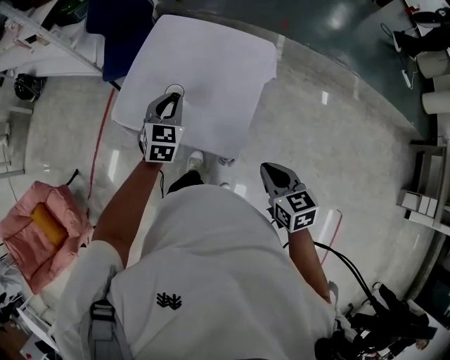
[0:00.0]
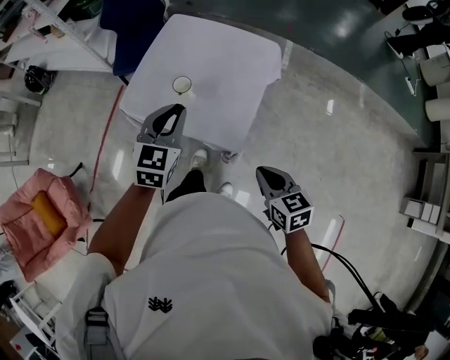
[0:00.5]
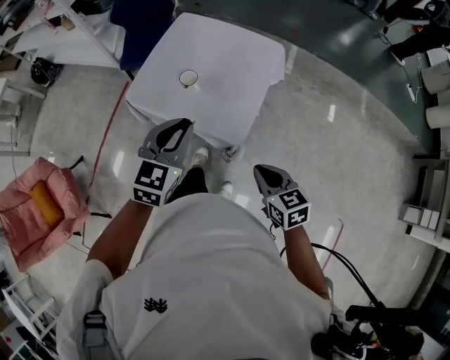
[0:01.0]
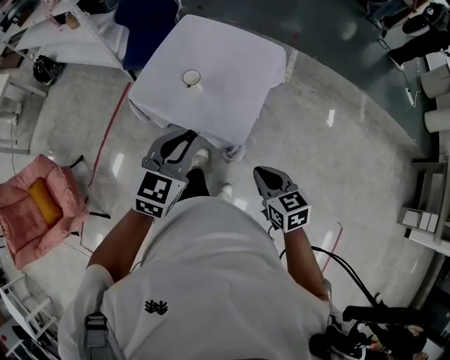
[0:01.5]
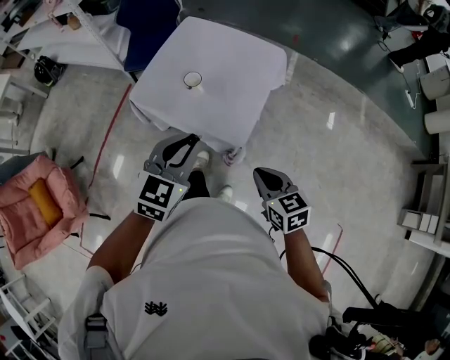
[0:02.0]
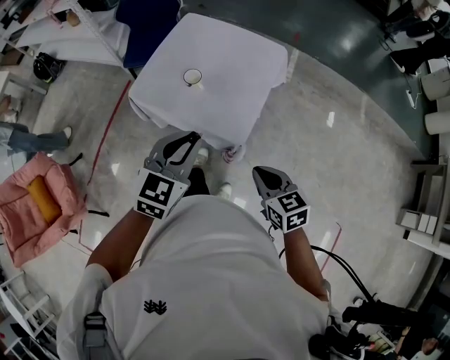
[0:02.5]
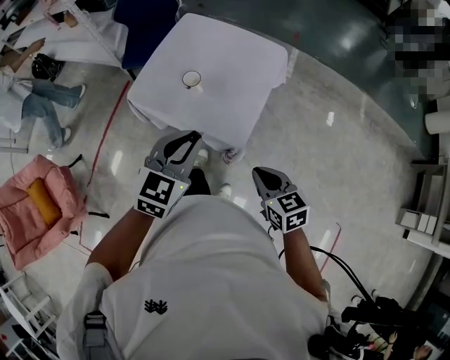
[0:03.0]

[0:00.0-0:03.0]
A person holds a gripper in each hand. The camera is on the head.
0:00.0 to 0:01.5: The left gripper moves backward and upward, approximately 25 cm. The right gripper is displaced backward and to the left by roughly 10 cm.
0:01.5 to 0:03.0: There are only small adjustments of the grippers.

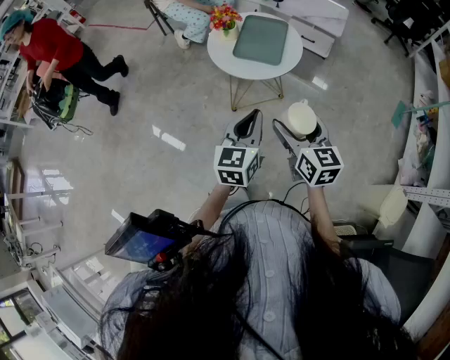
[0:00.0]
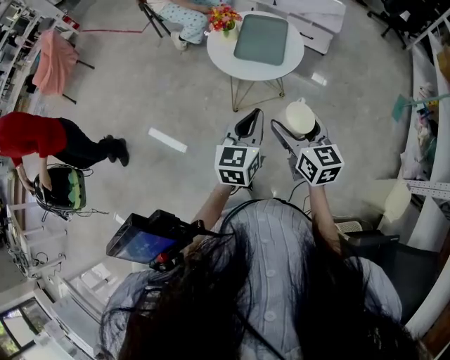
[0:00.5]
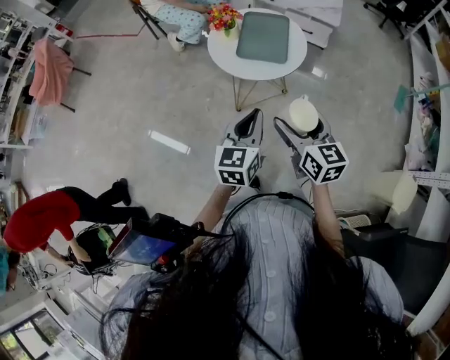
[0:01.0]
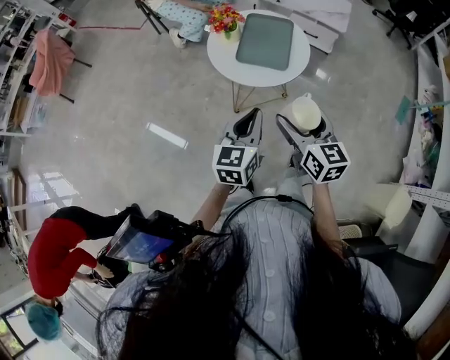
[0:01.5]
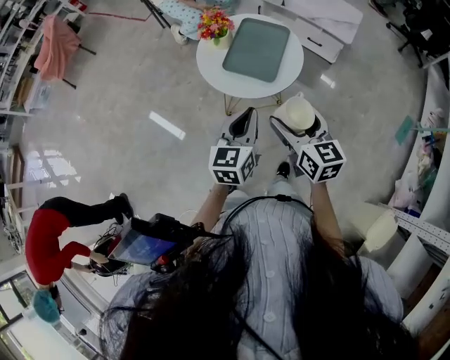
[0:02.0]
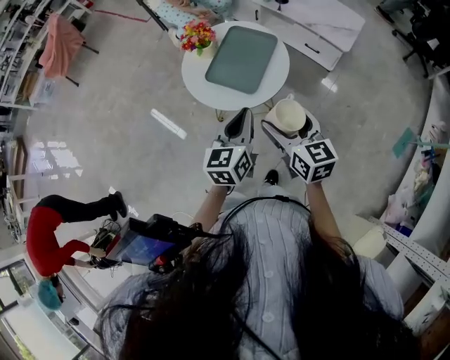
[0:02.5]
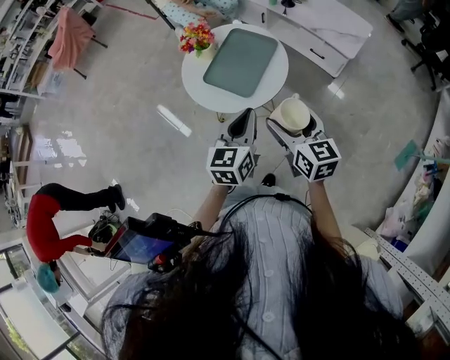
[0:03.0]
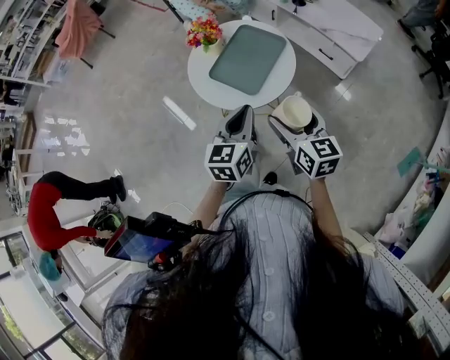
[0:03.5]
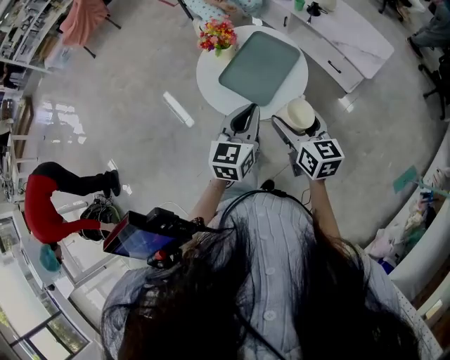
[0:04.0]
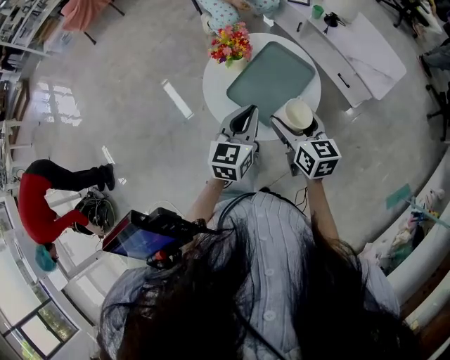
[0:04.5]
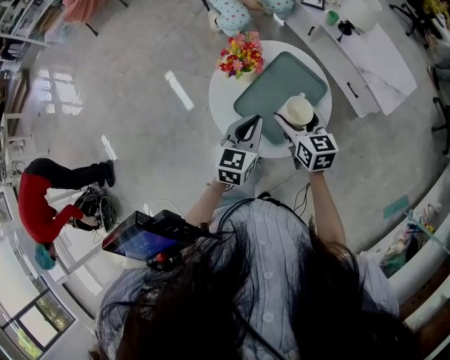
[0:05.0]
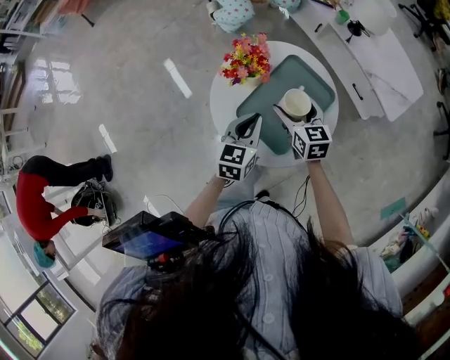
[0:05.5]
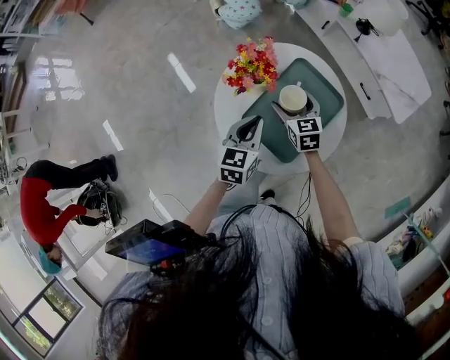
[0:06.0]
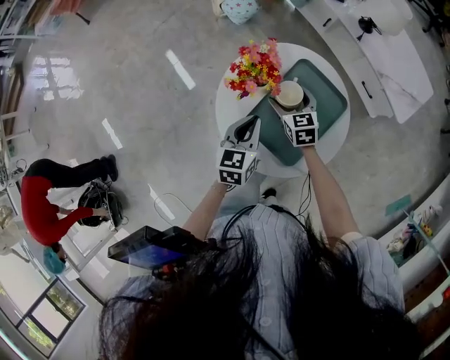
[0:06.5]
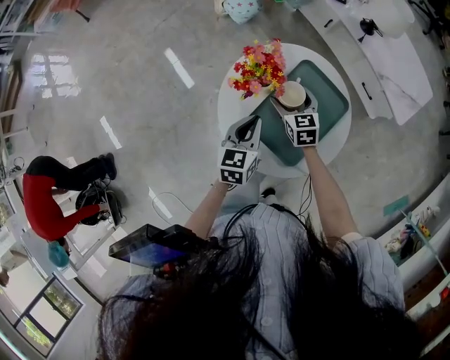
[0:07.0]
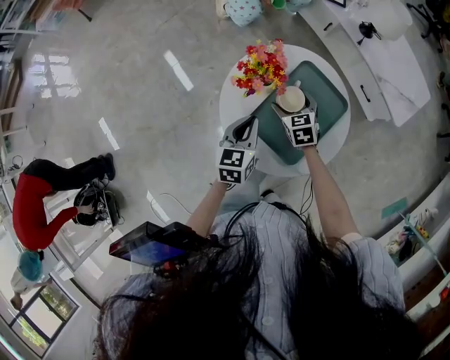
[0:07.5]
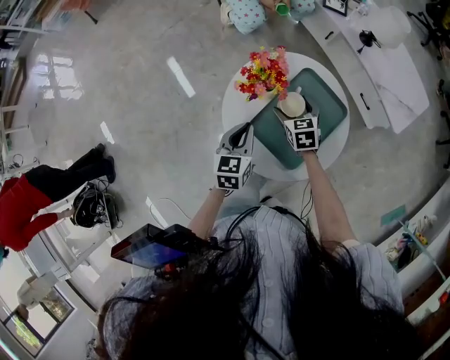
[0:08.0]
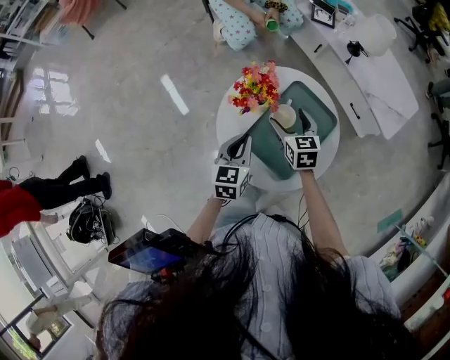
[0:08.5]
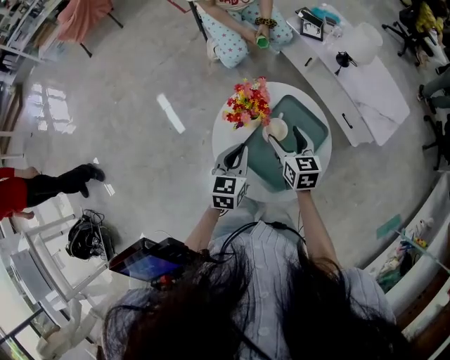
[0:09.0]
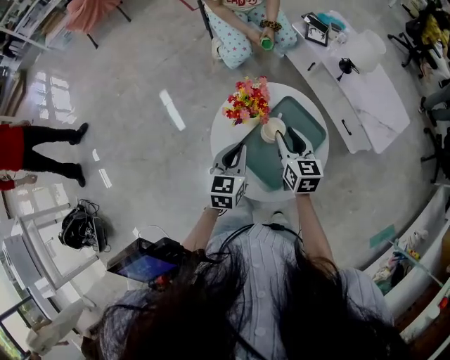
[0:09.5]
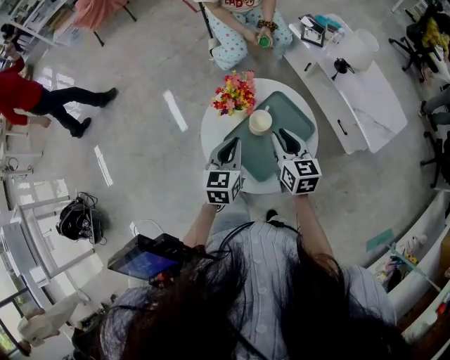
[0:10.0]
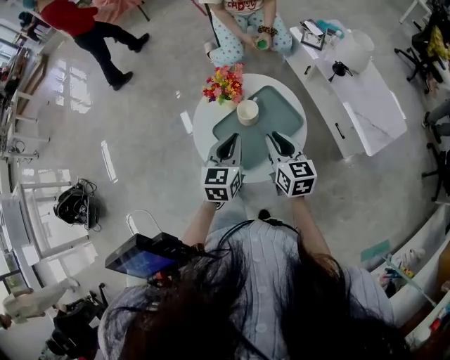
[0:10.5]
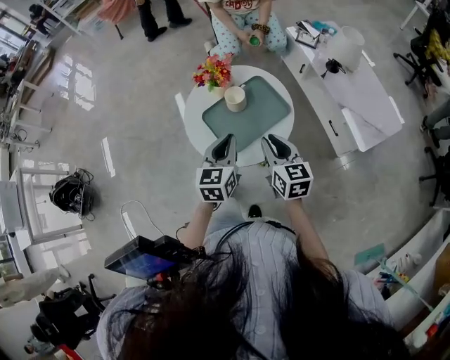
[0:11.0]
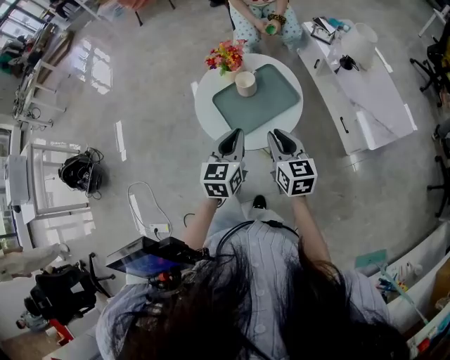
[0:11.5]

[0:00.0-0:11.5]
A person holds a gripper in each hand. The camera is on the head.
0:00.0 to 0:02.0: Both grippers travel together forward, some 15 cm.
0:02.0 to 0:04.0: Both grippers travel together forward and to the right, approximately 15 cm.
0:04.0 to 0:06.0: The grippers both shift forward and downward by some 30 cm. The right gripper rotates approximately 30 degrees.
0:06.0 to 0:07.5: The grippers stay close to where they were, moving slightly.
0:07.5 to 0:09.5: The right gripper travels upward by roughly 15 cm, rotates some 20 degrees, and closes.
0:09.5 to 0:11.5: Both grippers travel together backward and to the right, about 25 cm. The right gripper turns by roughly 20 degrees.

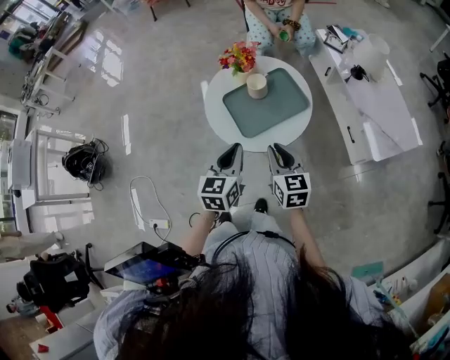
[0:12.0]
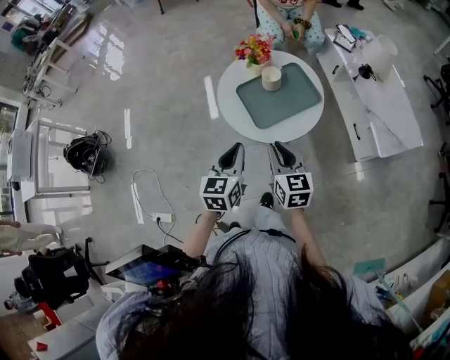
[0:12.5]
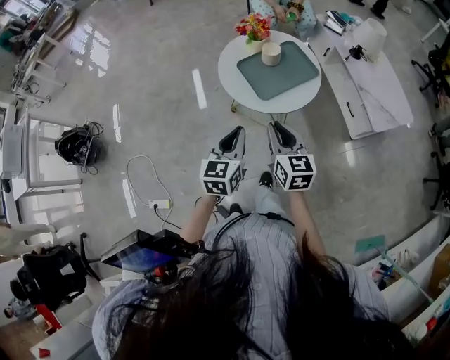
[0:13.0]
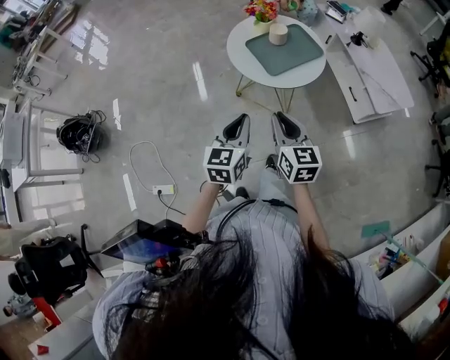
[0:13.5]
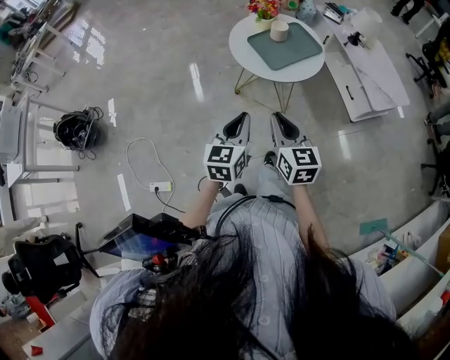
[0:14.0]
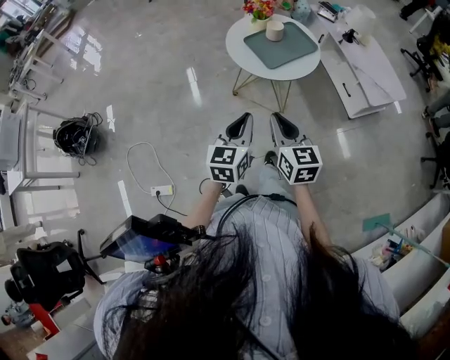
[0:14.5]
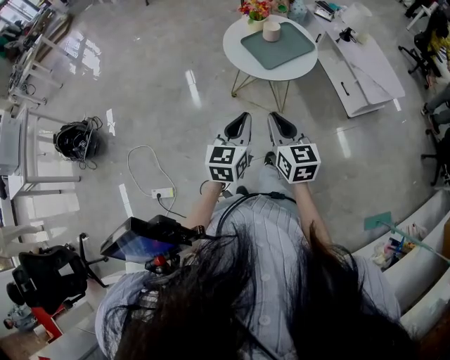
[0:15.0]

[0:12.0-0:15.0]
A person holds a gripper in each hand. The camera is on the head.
0:12.0 to 0:13.5: Both grippers move backward and to the left, some 25 cm.
0:13.5 to 0:15.0: The grippers move only a little.

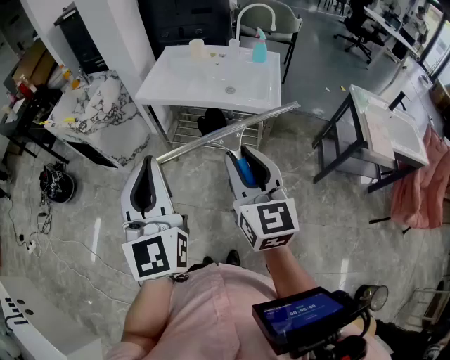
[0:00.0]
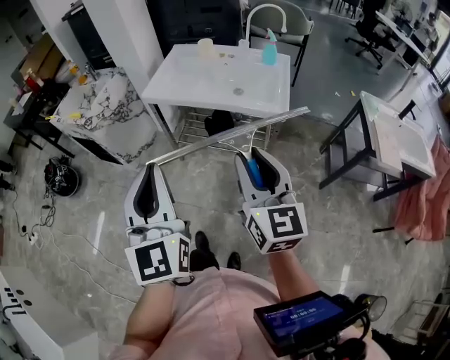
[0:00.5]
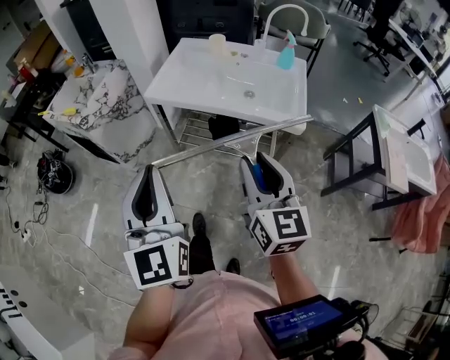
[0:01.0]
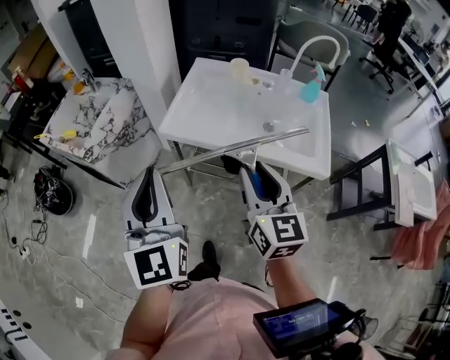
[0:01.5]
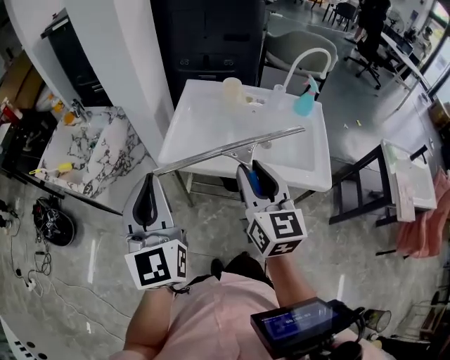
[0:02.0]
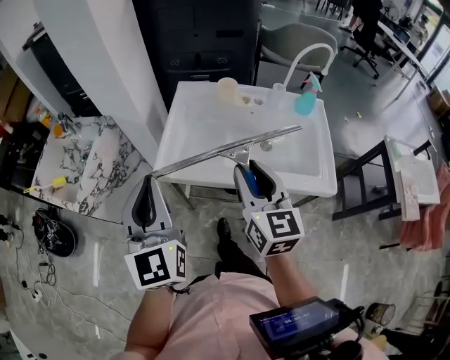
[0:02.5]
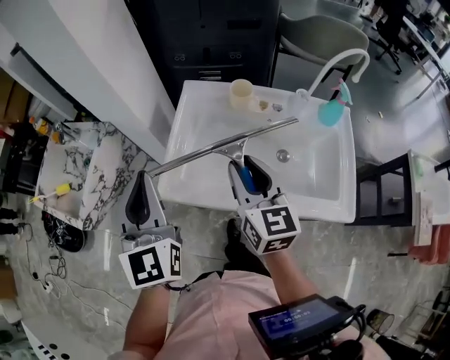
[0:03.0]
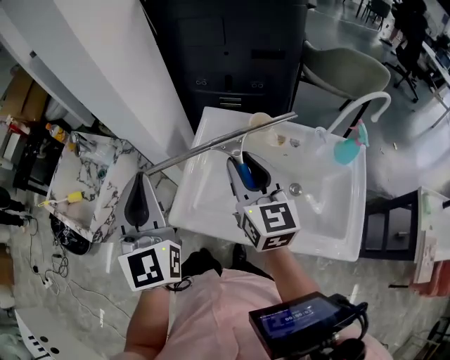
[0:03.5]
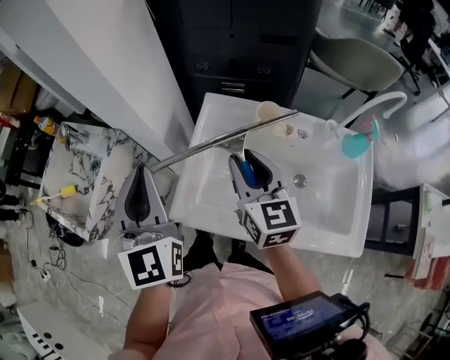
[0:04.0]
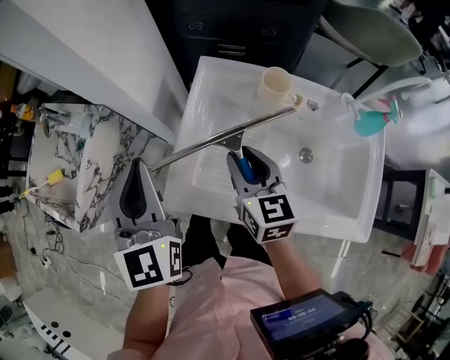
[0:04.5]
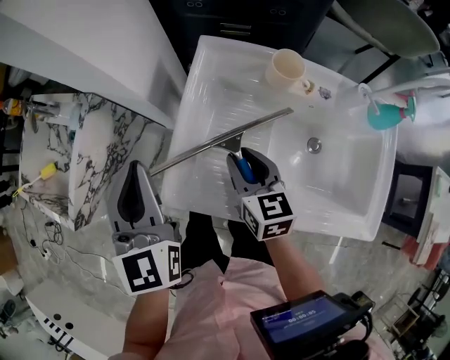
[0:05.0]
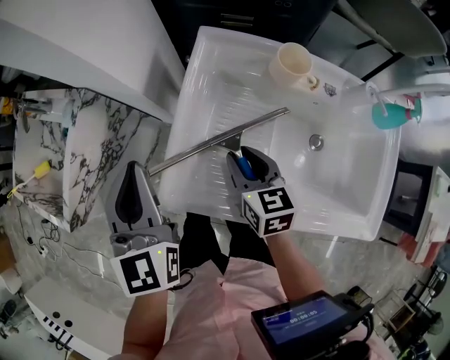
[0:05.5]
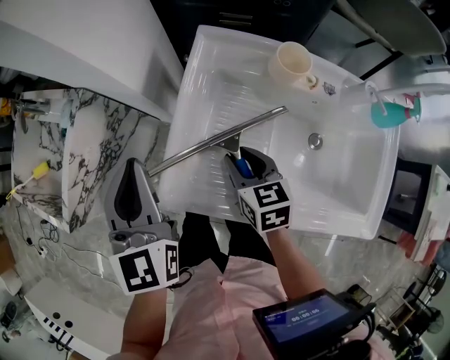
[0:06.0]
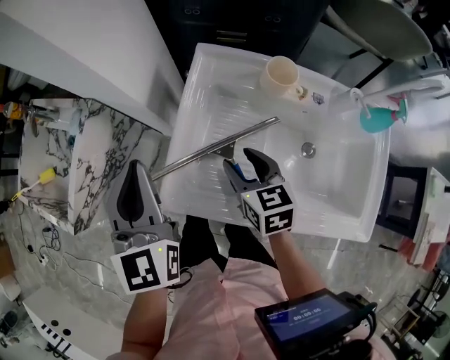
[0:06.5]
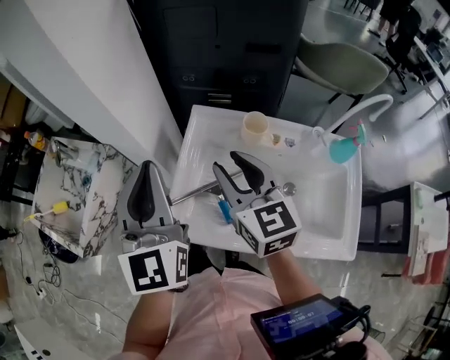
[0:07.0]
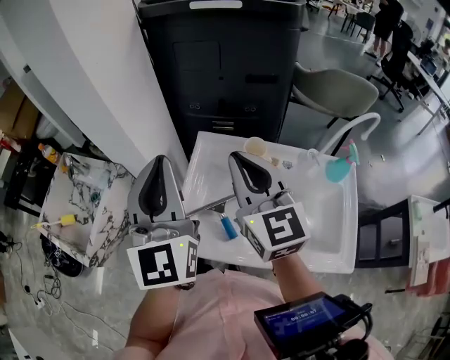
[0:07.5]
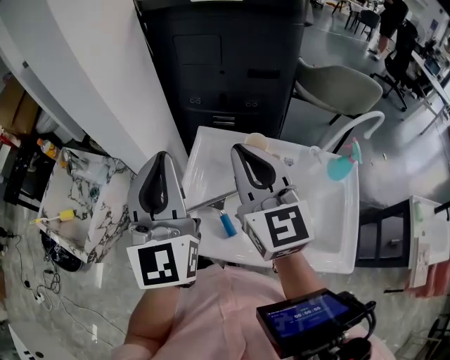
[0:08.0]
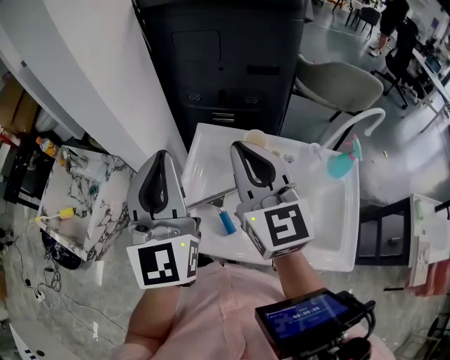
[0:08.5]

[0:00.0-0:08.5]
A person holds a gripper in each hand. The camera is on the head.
0:00.0 to 0:02.0: The two grippers go roughly 35 cm forward.
0:02.0 to 0:04.0: Both grippers travel together forward, about 30 cm.
0:04.0 to 0:06.5: The right gripper moves downward, roughly 15 cm, swivels approximately 30 degrees, and opens its fingers. Meanwhile the left gripper heads downward, covering approximately 10 cm.
0:06.5 to 0:08.5: The right gripper goes some 30 cm upward, tips its fingers upward by some 40 degrees, and closes its fingers. Meanwhile the left gripper travels upward and to the right by roughly 20 cm, and turns by approximately 20 degrees.
